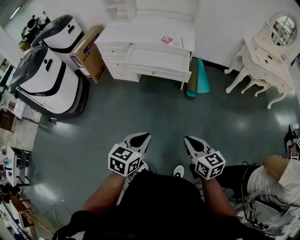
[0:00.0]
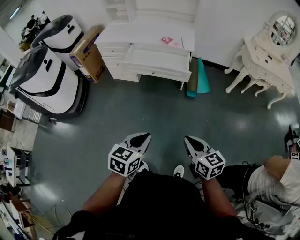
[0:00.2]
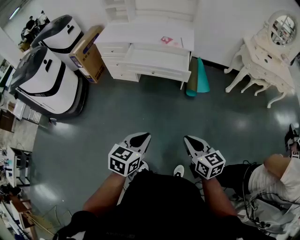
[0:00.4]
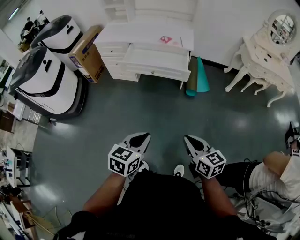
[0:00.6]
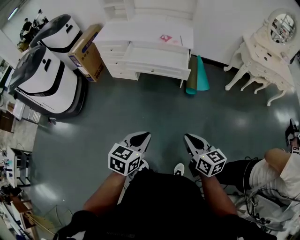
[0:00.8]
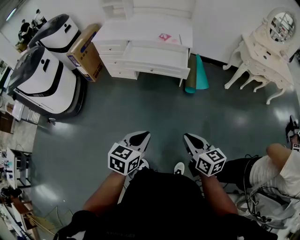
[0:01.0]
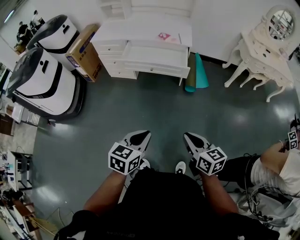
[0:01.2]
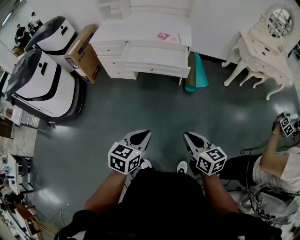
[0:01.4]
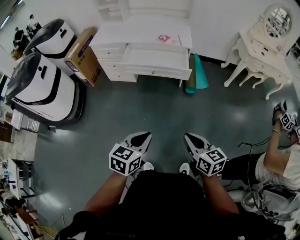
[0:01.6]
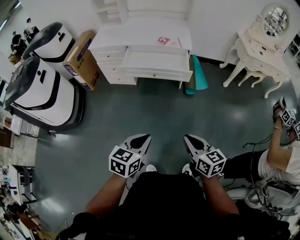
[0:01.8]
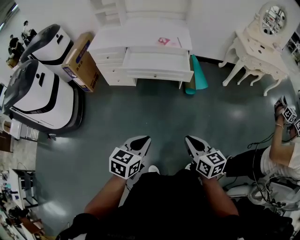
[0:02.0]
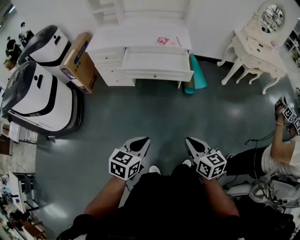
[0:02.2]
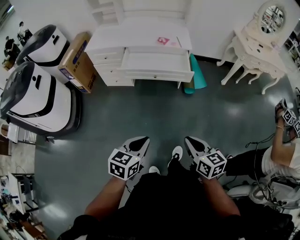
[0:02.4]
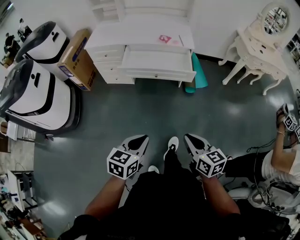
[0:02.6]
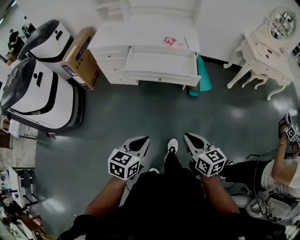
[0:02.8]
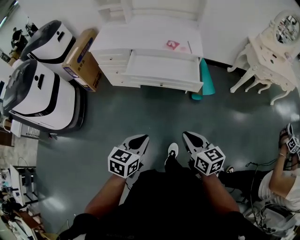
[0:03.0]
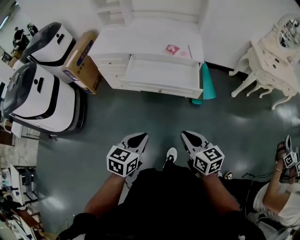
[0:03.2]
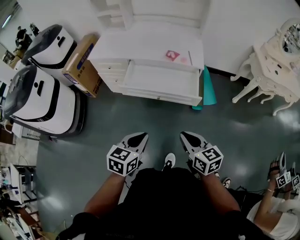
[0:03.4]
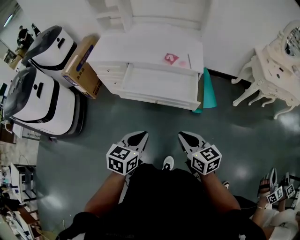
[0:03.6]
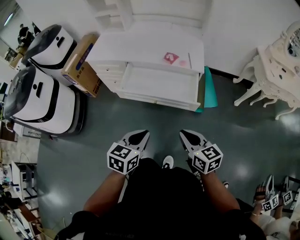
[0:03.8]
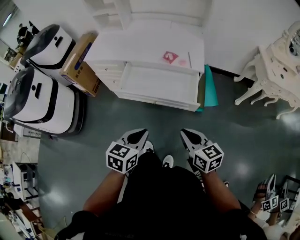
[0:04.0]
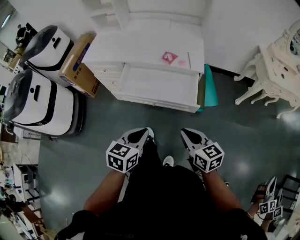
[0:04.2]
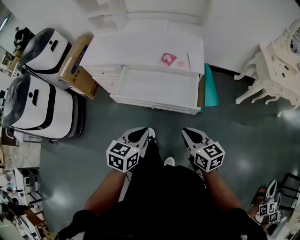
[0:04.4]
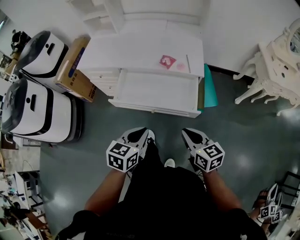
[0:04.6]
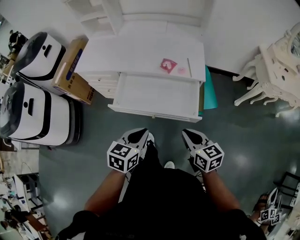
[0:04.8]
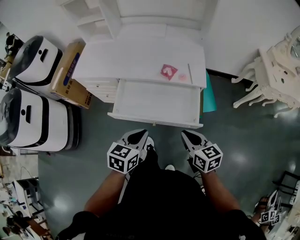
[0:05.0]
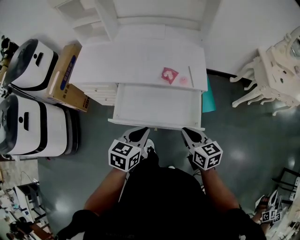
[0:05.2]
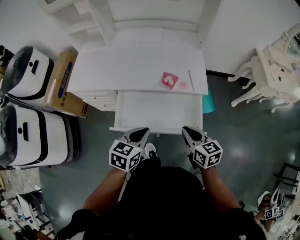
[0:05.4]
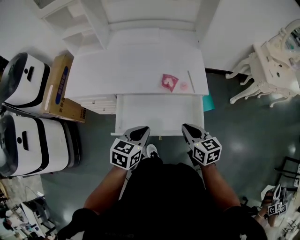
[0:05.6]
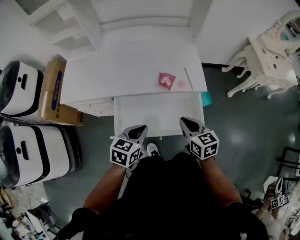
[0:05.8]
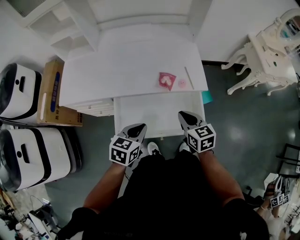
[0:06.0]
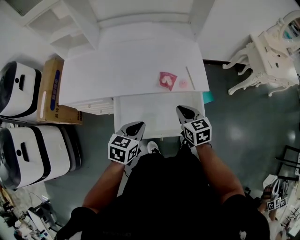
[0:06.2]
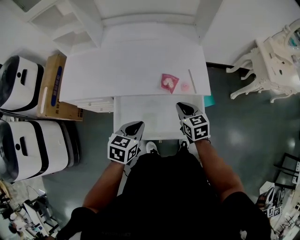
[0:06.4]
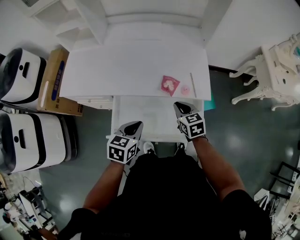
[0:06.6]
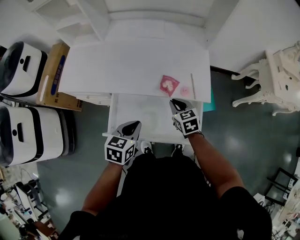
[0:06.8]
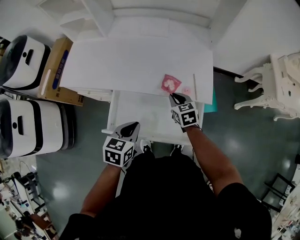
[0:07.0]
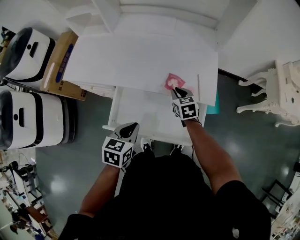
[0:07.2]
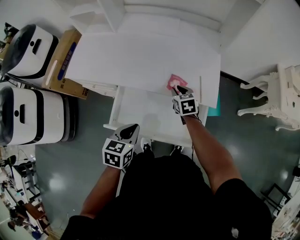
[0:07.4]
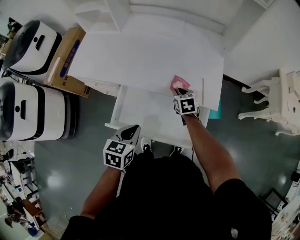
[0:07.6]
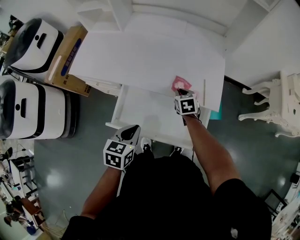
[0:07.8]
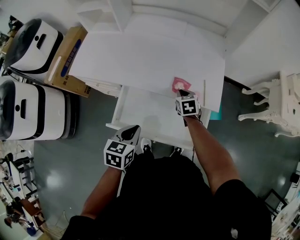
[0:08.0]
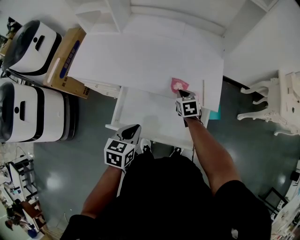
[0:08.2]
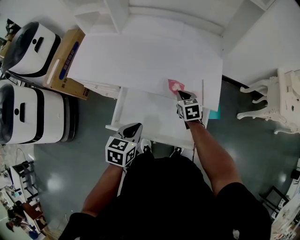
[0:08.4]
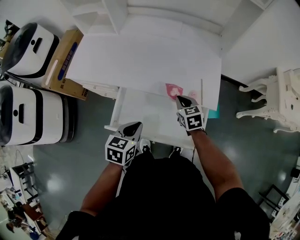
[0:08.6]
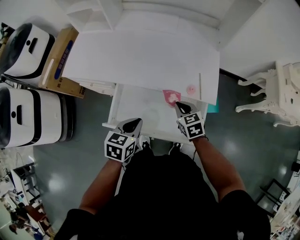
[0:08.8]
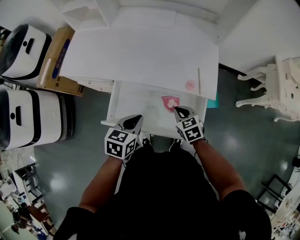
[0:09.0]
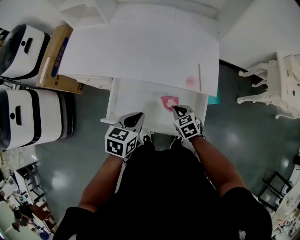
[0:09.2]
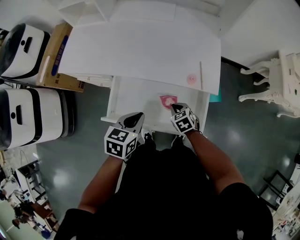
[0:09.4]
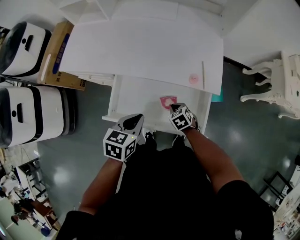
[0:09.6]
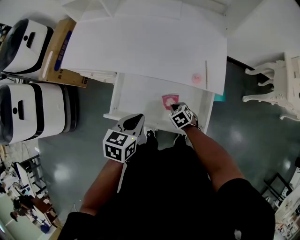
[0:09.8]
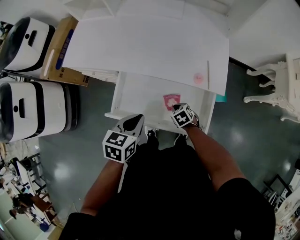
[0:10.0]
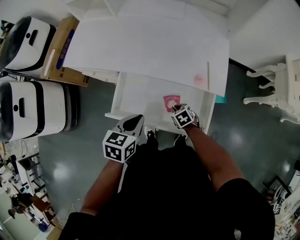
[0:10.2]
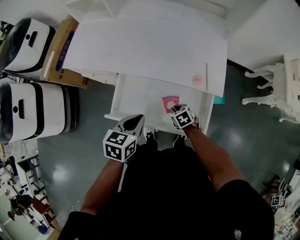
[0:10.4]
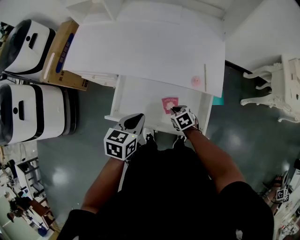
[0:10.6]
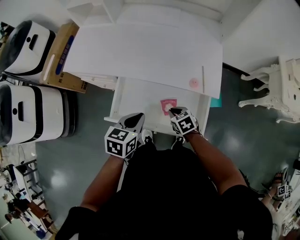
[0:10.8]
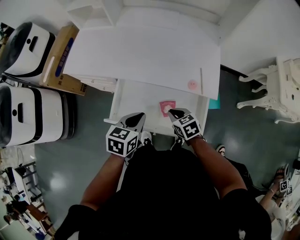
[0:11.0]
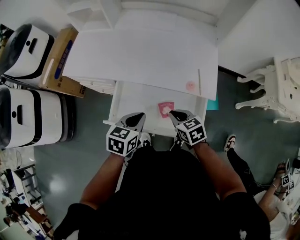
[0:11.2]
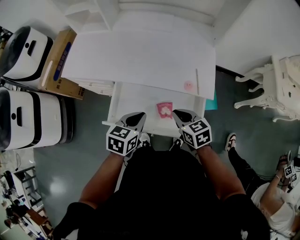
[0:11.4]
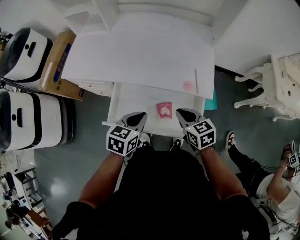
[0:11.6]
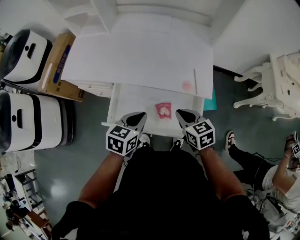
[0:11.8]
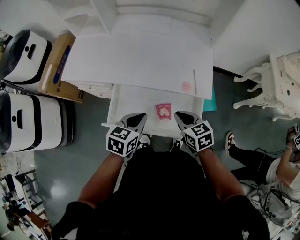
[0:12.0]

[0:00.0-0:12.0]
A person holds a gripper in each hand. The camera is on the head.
0:00.0 to 0:01.6: The grippers make only small movements.
0:01.6 to 0:03.0: The two grippers go some 15 cm forward and to the left.
0:03.0 to 0:04.4: The two grippers go about 20 cm forward.
0:04.4 to 0:06.0: The two grippers go about 25 cm forward. The right gripper turns by roughly 20 degrees.
0:06.0 to 0:07.6: The right gripper is displaced forward and downward by about 20 cm, and turns by some 20 degrees. The left gripper turns by approximately 20 degrees.
0:07.6 to 0:09.0: The right gripper travels backward by approximately 15 cm.
0:09.0 to 0:10.4: The right gripper is displaced downward by approximately 15 cm.
0:10.4 to 0:12.0: The right gripper moves upward, some 20 cm, and rotates approximately 30 degrees.

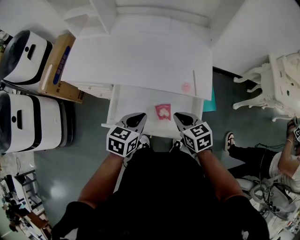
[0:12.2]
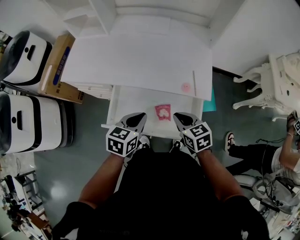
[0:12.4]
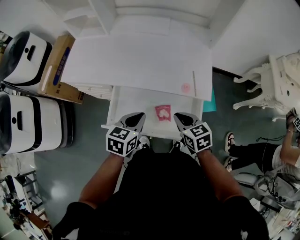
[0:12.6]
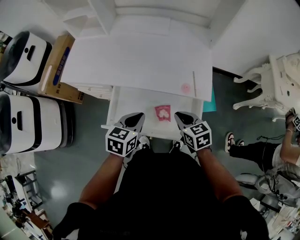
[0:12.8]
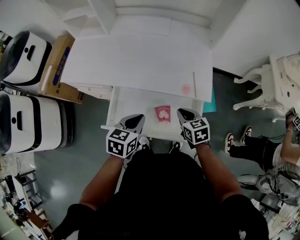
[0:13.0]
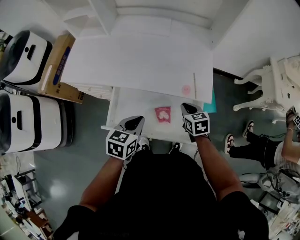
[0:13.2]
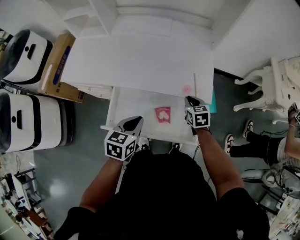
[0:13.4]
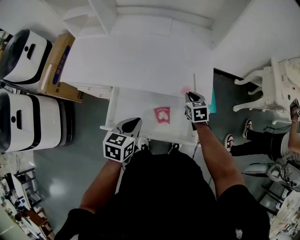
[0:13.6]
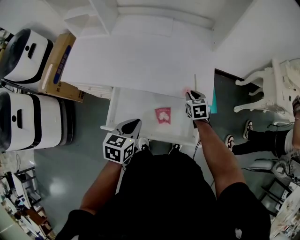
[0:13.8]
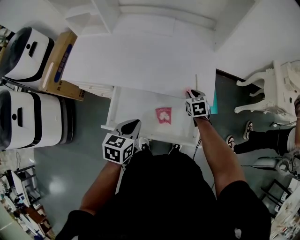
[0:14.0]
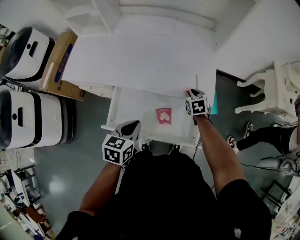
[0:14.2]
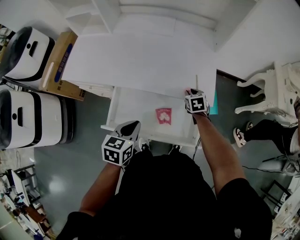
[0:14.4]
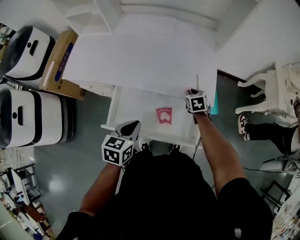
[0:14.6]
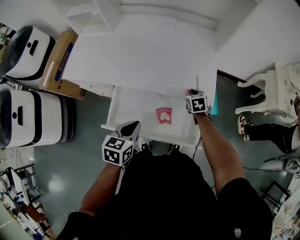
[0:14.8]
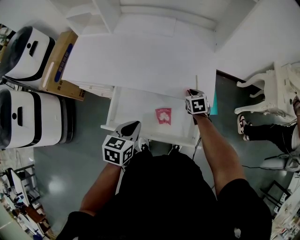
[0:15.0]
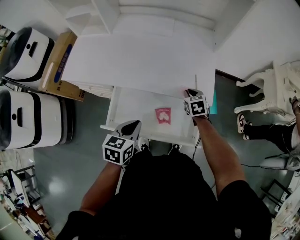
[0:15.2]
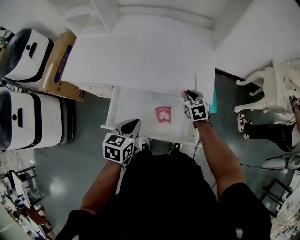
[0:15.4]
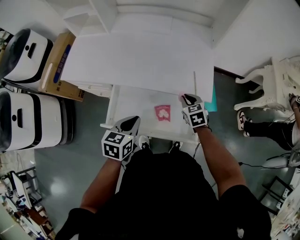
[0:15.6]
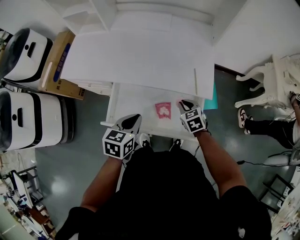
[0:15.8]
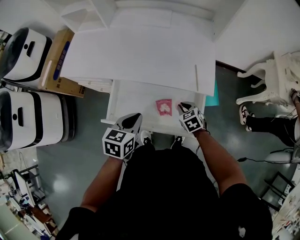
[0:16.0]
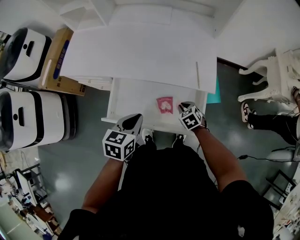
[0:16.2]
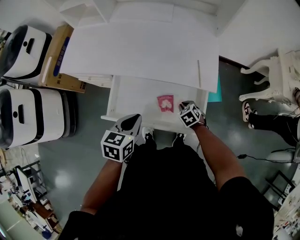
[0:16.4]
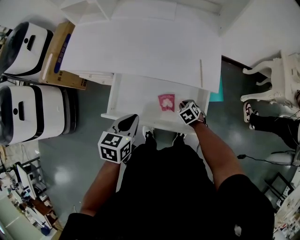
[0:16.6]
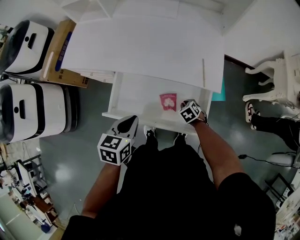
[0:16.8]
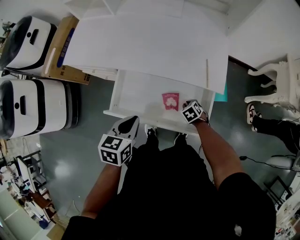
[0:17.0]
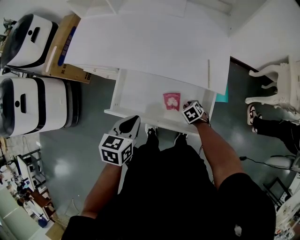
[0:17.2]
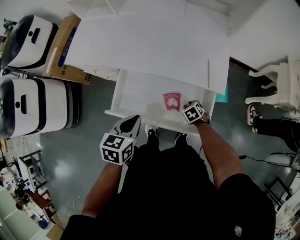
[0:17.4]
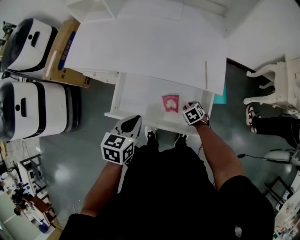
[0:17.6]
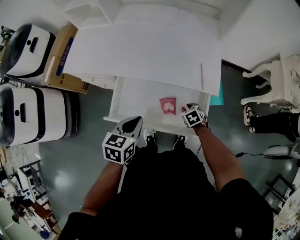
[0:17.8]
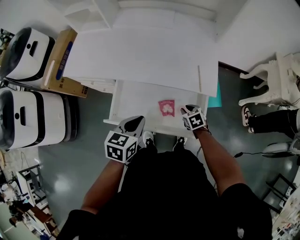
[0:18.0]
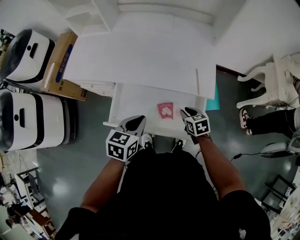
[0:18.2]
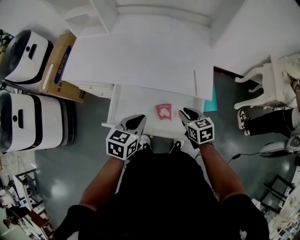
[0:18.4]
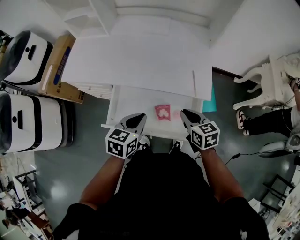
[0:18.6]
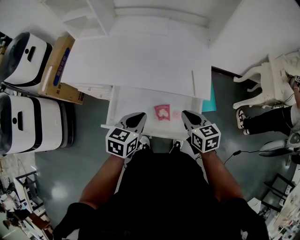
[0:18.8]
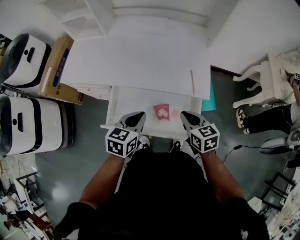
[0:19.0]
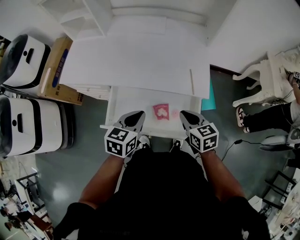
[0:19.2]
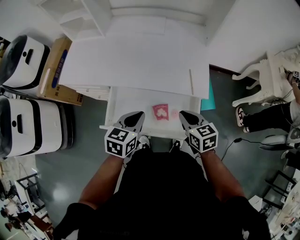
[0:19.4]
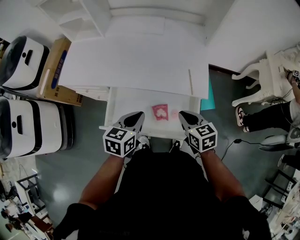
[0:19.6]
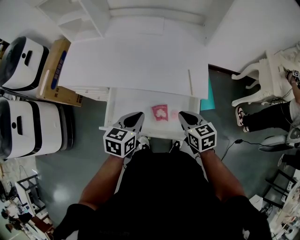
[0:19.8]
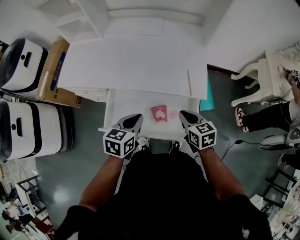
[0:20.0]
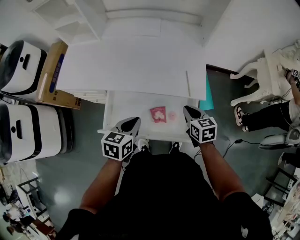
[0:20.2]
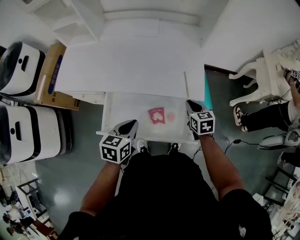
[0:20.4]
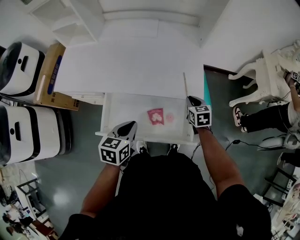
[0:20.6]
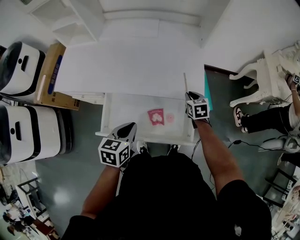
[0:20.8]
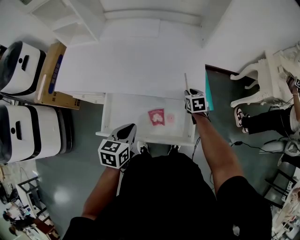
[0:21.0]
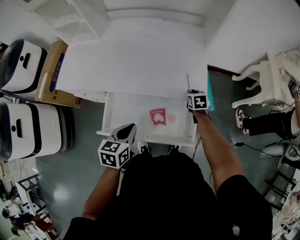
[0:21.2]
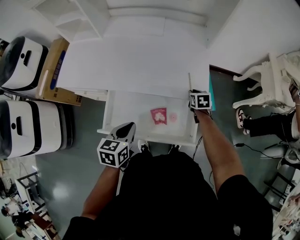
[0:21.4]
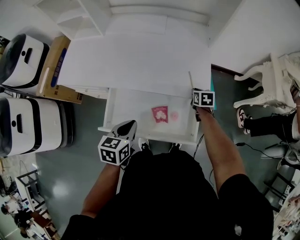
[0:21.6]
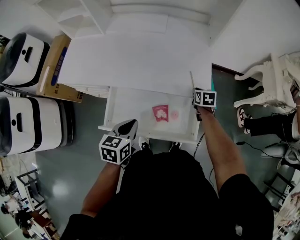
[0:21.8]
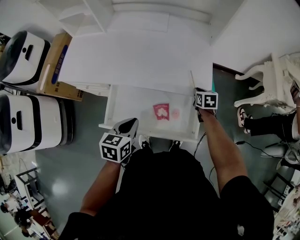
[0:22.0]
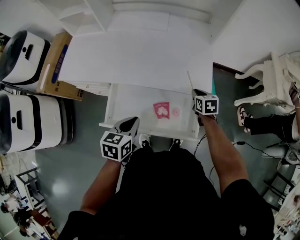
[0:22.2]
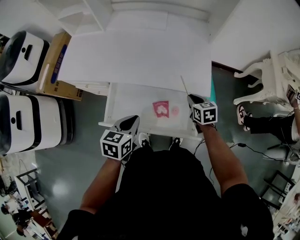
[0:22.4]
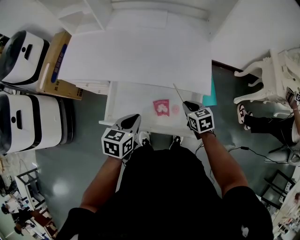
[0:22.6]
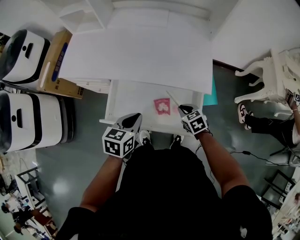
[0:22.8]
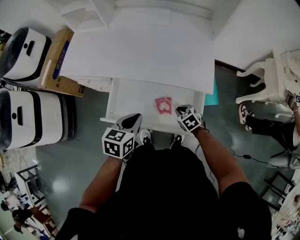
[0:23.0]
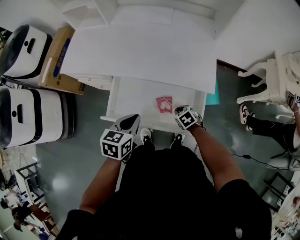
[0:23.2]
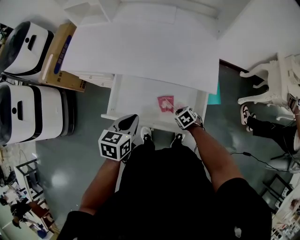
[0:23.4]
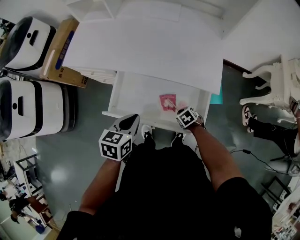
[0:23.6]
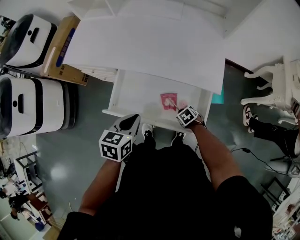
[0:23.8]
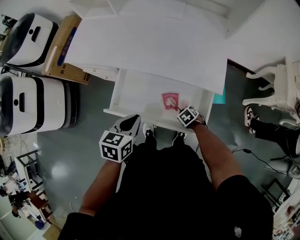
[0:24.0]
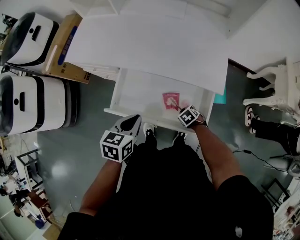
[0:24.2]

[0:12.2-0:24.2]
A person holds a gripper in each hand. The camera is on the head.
0:12.2 to 0:13.8: The right gripper is displaced forward, downward and to the right by about 20 cm, and swivels some 20 degrees.
0:13.8 to 0:15.2: The grippers move only a little.
0:15.2 to 0:16.6: The right gripper is displaced downward and backward by approximately 20 cm, and changes its angle by approximately 30 degrees.
0:16.6 to 0:18.2: The right gripper goes approximately 10 cm upward, and swivels about 30 degrees.
0:18.2 to 0:19.8: The right gripper shifts some 10 cm upward.
0:19.8 to 0:21.2: The right gripper shifts some 25 cm forward, downward and to the right, and changes its angle by about 20 degrees.
0:21.2 to 0:22.6: The right gripper heads backward and to the left, covering some 15 cm.
0:22.6 to 0:24.2: The right gripper heads downward, covering roughly 20 cm, and changes its angle by approximately 40 degrees.
